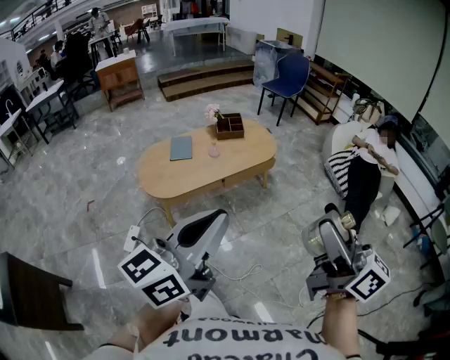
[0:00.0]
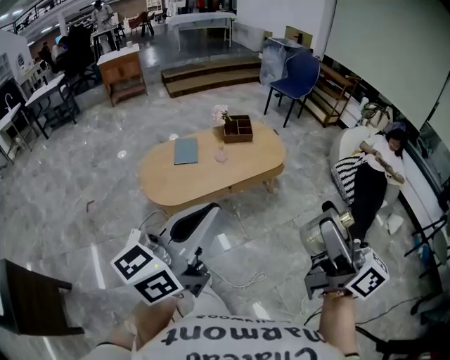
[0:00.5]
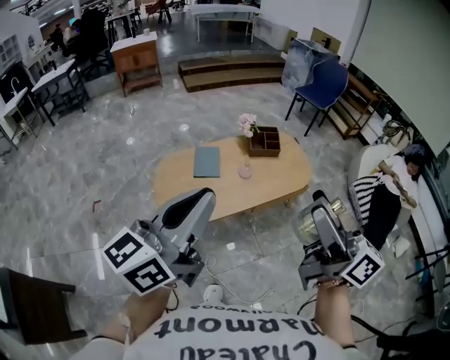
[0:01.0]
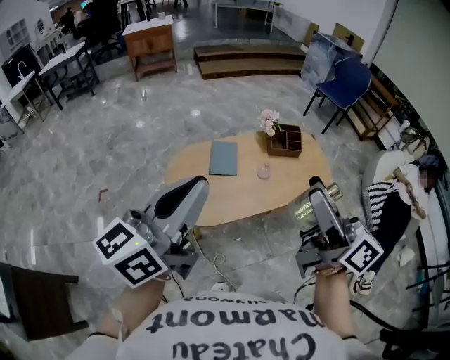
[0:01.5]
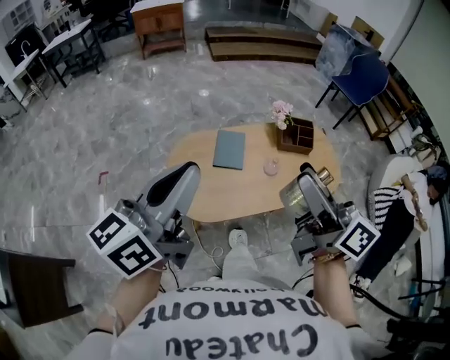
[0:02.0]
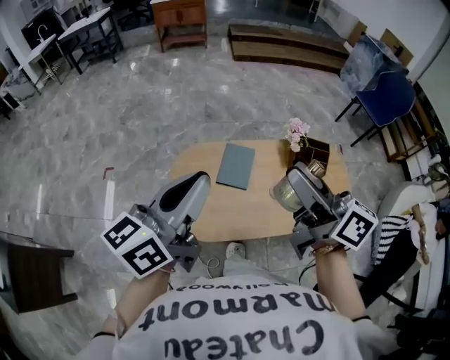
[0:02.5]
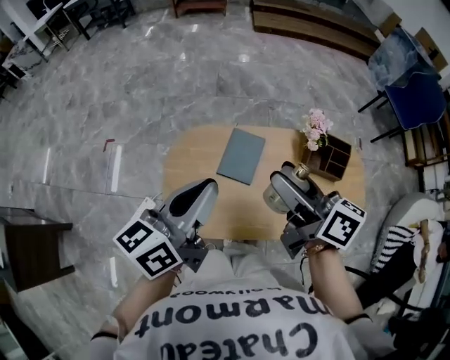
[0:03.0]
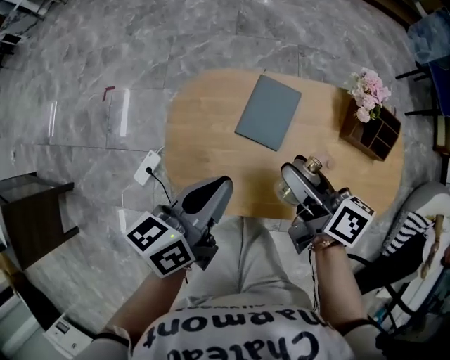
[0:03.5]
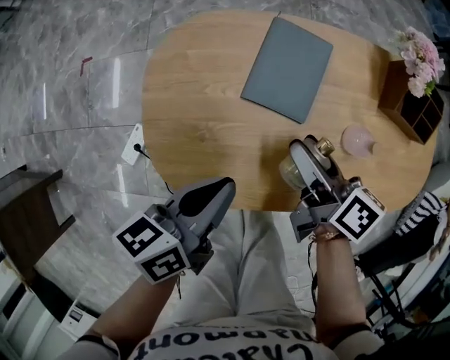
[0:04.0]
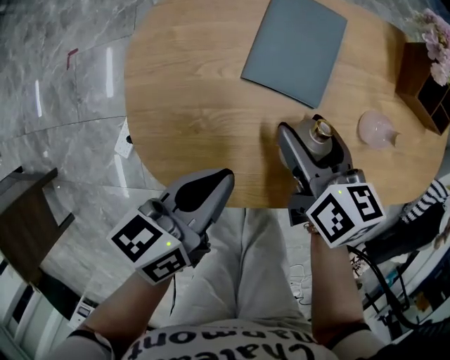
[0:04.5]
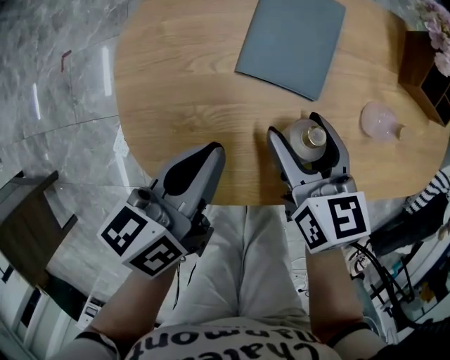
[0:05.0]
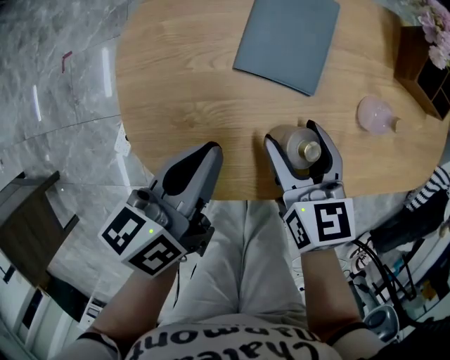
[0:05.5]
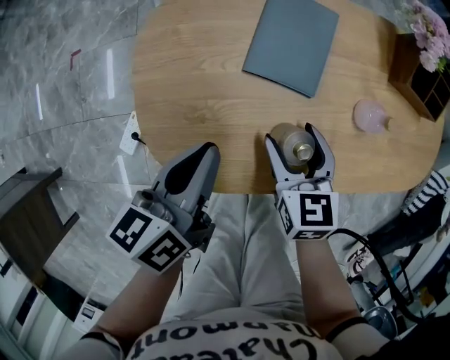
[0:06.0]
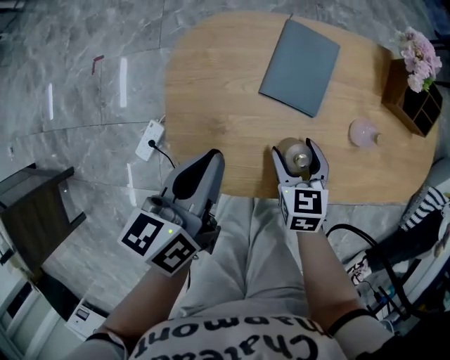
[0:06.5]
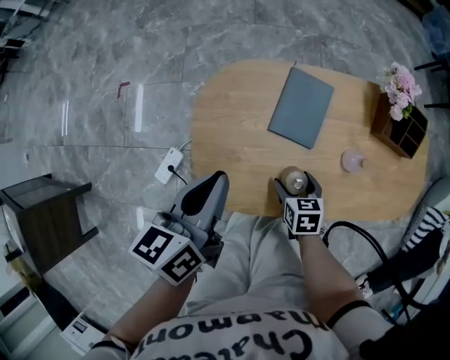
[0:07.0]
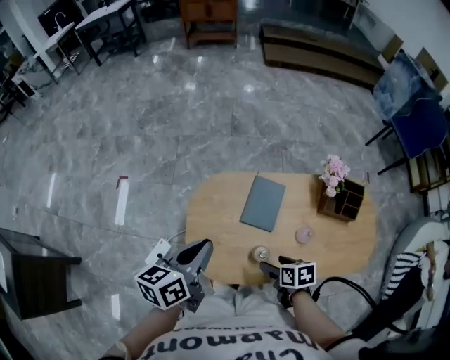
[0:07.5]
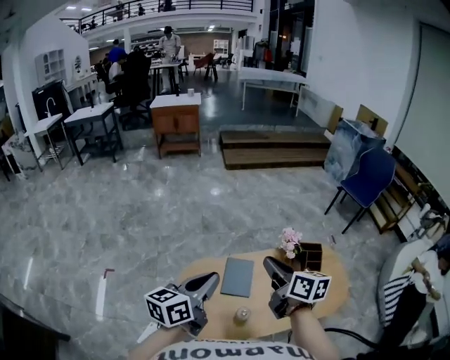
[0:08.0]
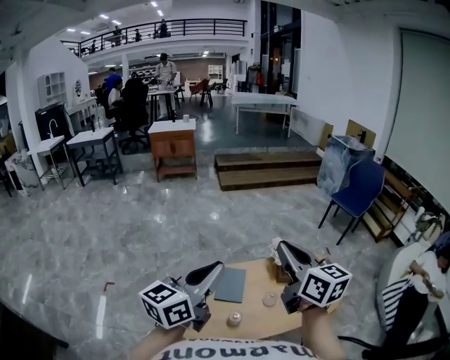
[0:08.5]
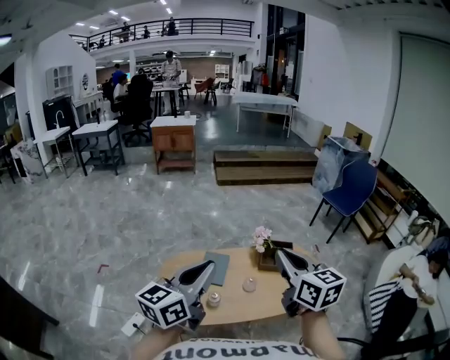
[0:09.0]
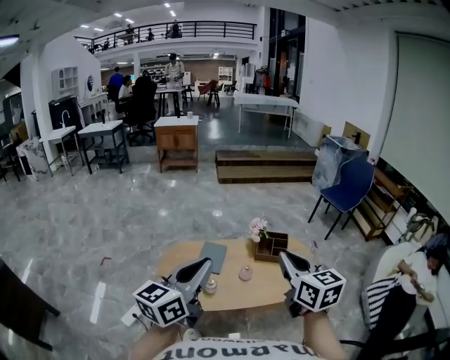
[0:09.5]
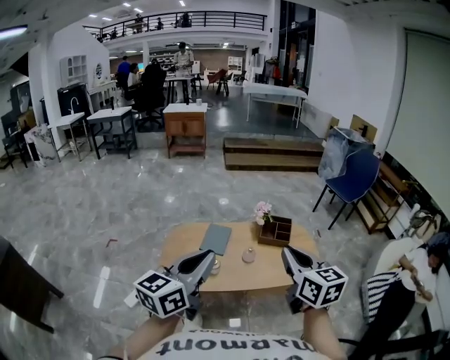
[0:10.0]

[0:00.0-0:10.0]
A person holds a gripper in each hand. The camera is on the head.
0:00.0 to 0:02.0: The two grippers travel together, forward and to the left, about 50 cm. The left gripper rotates roughly 20 degrees, while the right gripper turns by about 30 degrees.
0:02.0 to 0:04.0: The left gripper heads downward, covering approximately 50 cm, and points its fingers some 30 degrees further downward; the right gripper is displaced downward and forward by approximately 50 cm, and tips its fingers downward by roughly 40 degrees.
0:04.0 to 0:06.0: The right gripper shifts some 10 cm downward and backward, and twists roughly 40 degrees counterclockwise, seen from behind.
0:06.0 to 0:08.0: The two grippers go some 40 cm upward. The left gripper changes its angle by some 30 degrees. The right gripper turns by some 40 degrees, and closes its fingers.
0:08.0 to 0:10.0: The two grippers go about 40 cm backward and to the right. The left gripper swivels approximately 20 degrees; the right gripper changes its angle by some 30 degrees.

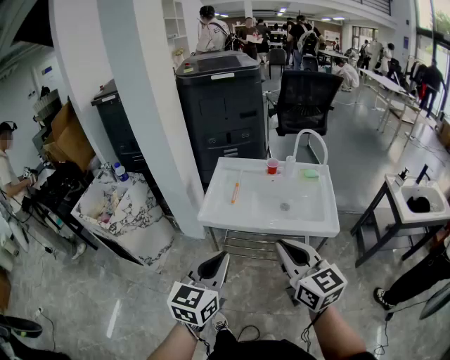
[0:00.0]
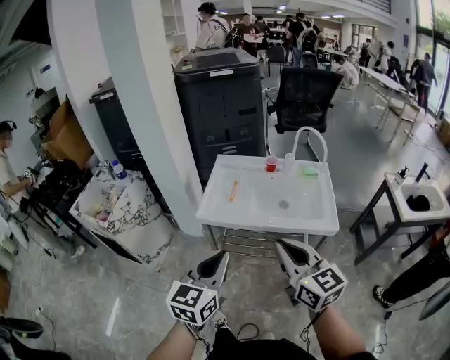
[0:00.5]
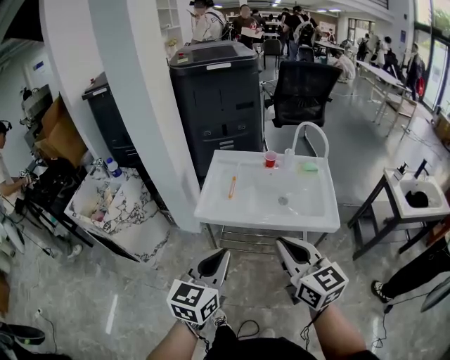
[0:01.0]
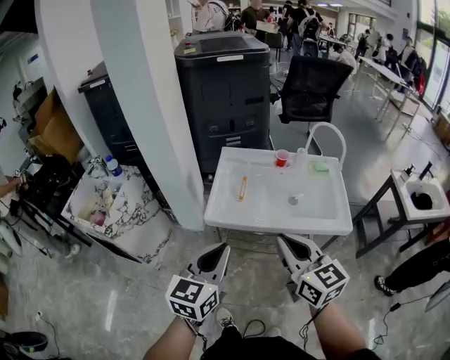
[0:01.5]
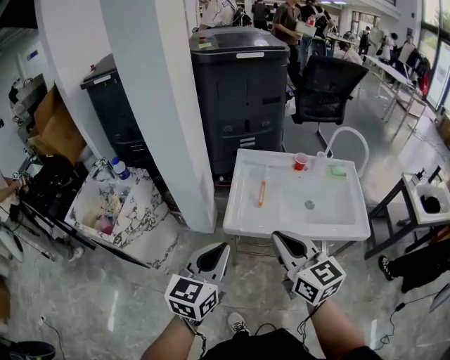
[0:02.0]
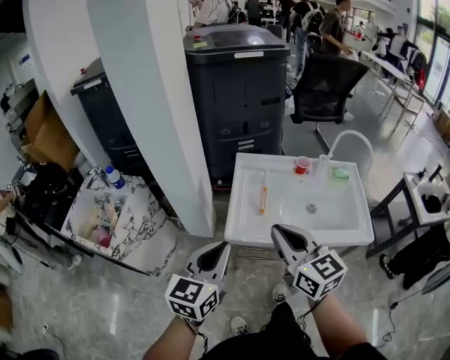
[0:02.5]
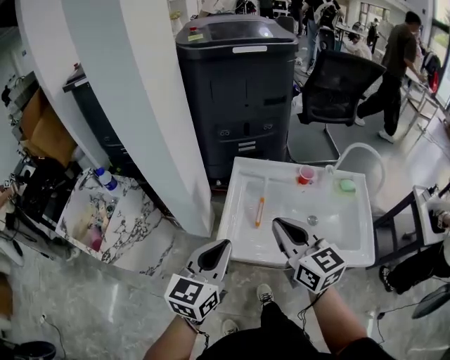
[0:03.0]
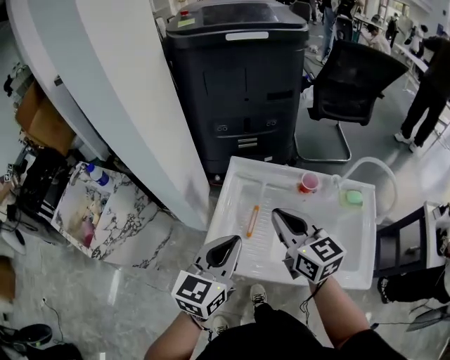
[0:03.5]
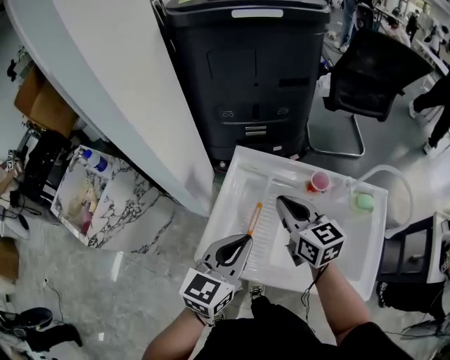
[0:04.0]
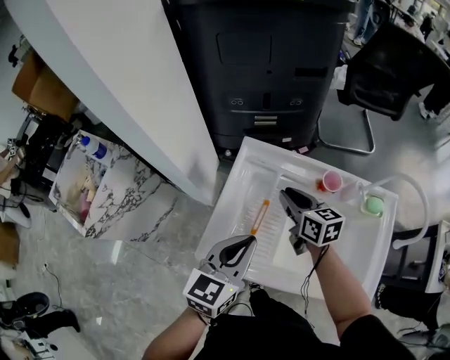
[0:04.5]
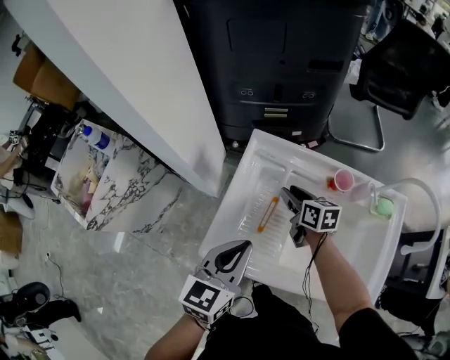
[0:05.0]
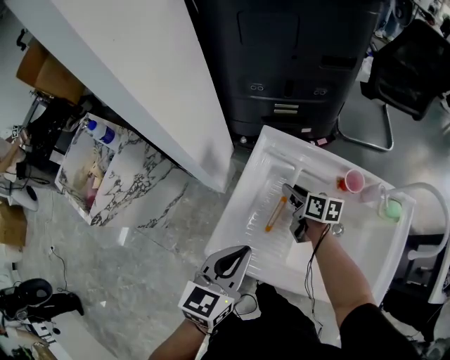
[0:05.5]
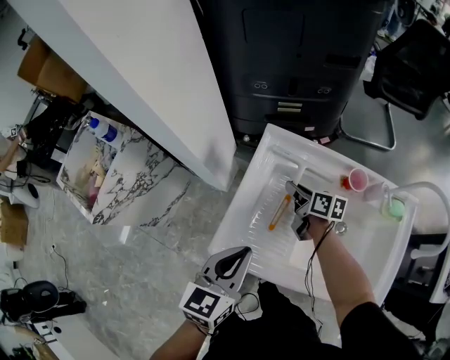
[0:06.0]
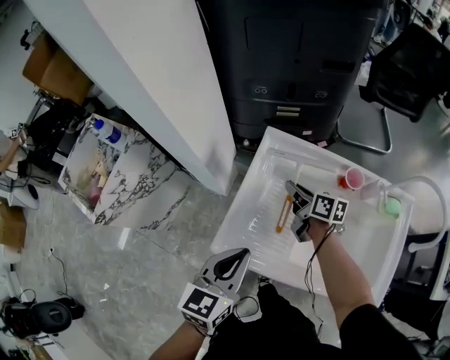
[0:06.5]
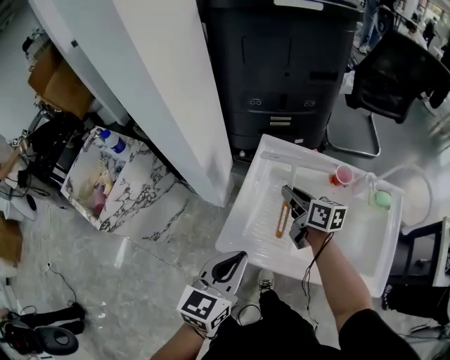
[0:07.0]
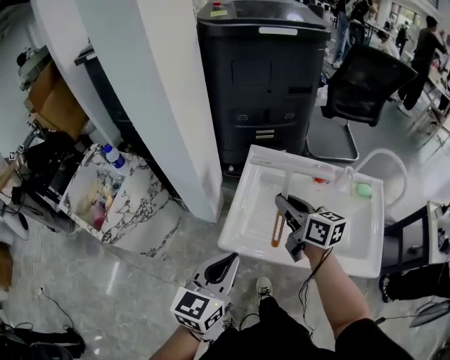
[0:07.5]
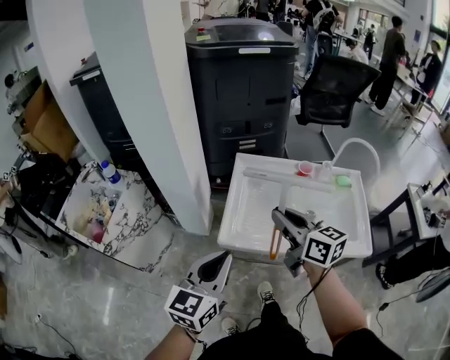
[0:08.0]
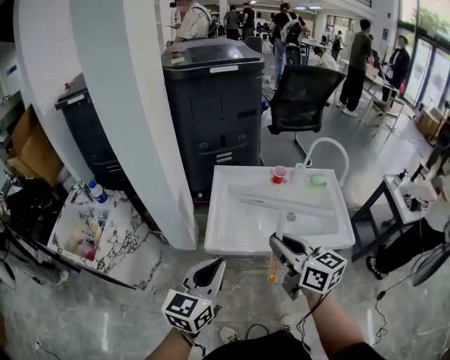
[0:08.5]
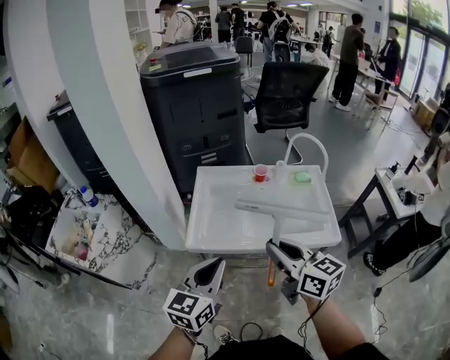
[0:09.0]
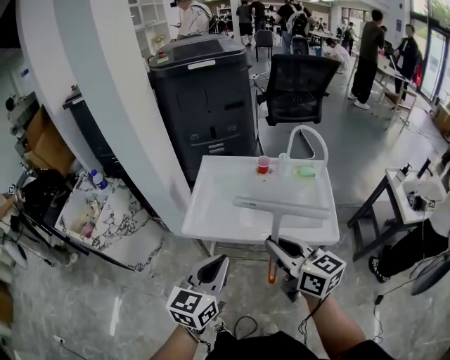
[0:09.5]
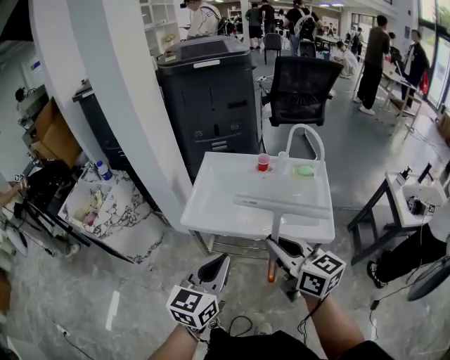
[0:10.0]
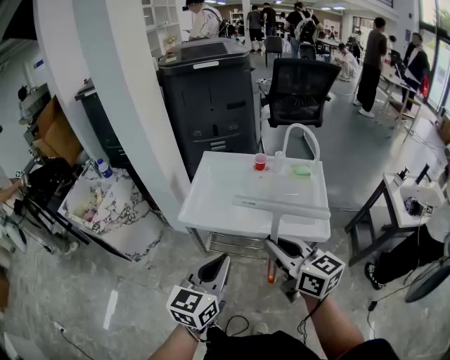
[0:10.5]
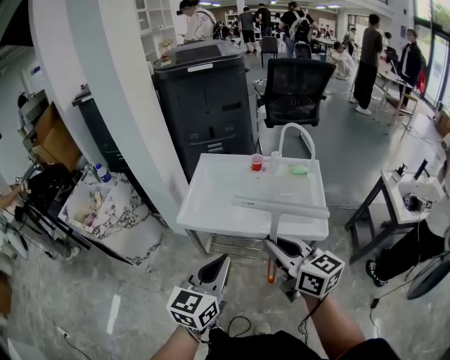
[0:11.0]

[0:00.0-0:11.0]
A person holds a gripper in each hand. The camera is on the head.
0:00.0 to 0:02.0: Both grippers move to the left and forward, approximately 20 cm.
0:02.0 to 0:03.5: The right gripper goes some 25 cm forward, while the left gripper is displaced forward and to the right by roughly 25 cm.
0:03.5 to 0:05.5: The right gripper is displaced downward and forward by approximately 30 cm, swivels roughly 40 degrees, and opens up. The left gripper moves downward, approximately 10 cm.
0:05.5 to 0:07.5: The left gripper goes some 15 cm backward, upward and to the left; the right gripper is displaced upward and backward by roughly 25 cm, rotates some 30 degrees, and closes up.
0:07.5 to 0:09.0: The right gripper travels backward by about 30 cm, while the left gripper travels backward and to the right by approximately 15 cm.
0:09.0 to 0:11.0: The left gripper heads to the right and backward, covering some 15 cm, while the right gripper moves backward and to the right, about 10 cm.

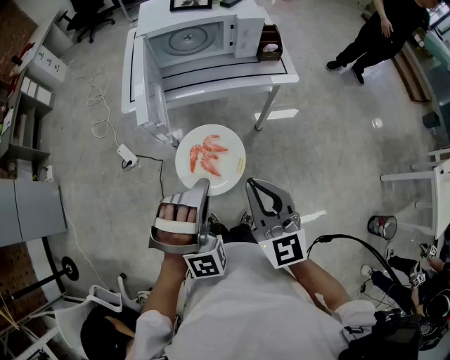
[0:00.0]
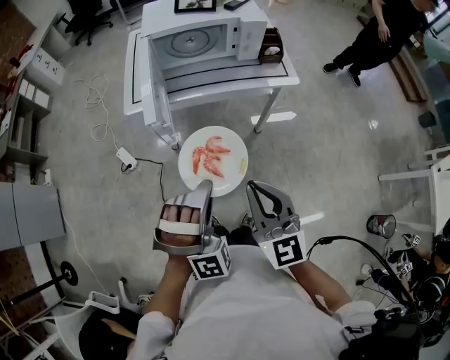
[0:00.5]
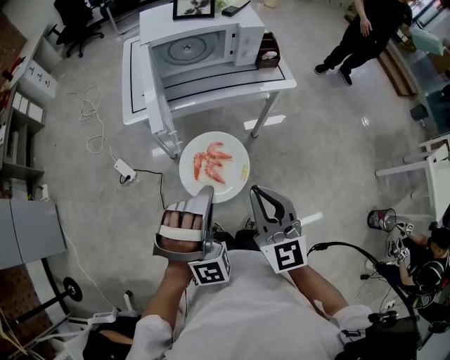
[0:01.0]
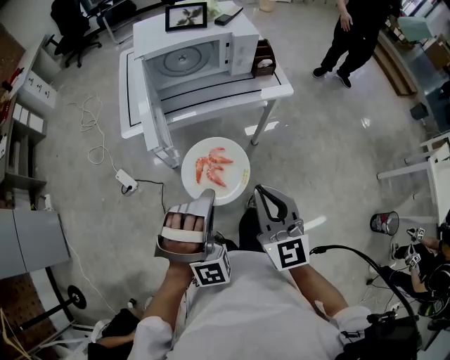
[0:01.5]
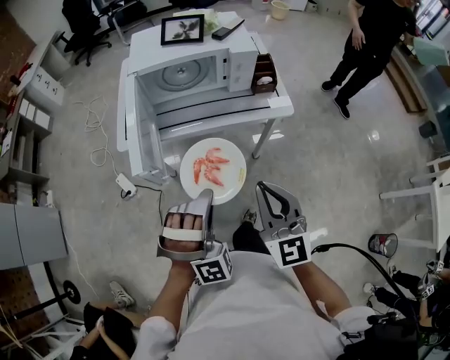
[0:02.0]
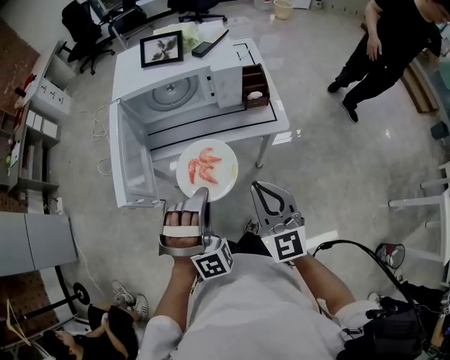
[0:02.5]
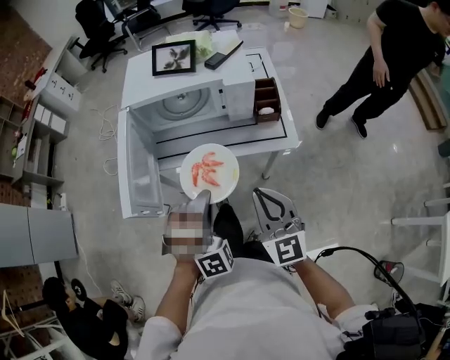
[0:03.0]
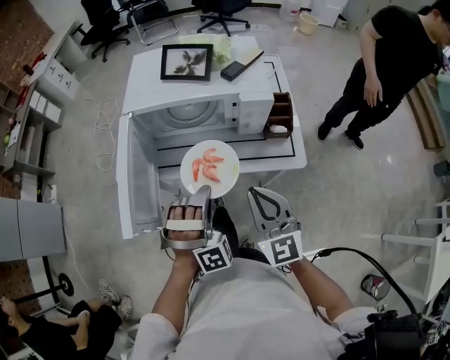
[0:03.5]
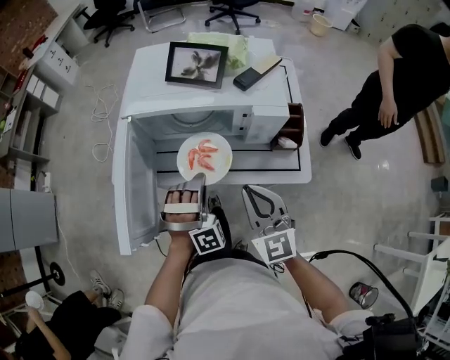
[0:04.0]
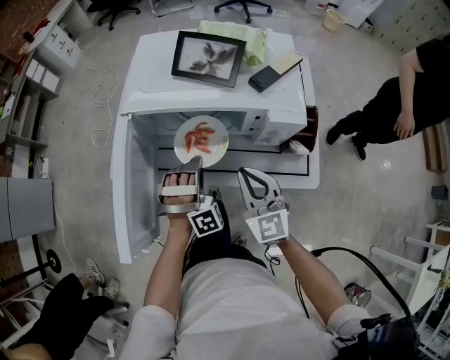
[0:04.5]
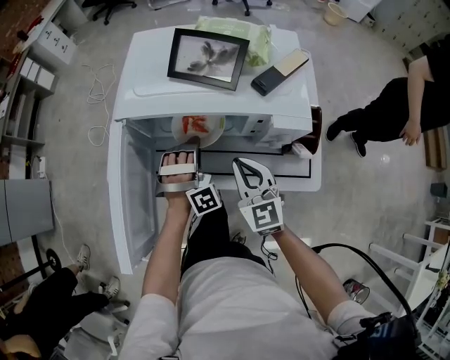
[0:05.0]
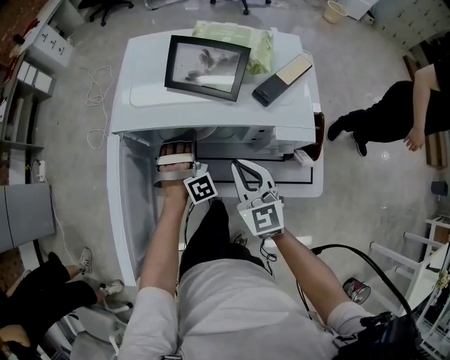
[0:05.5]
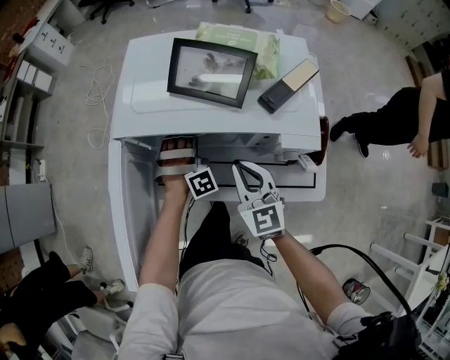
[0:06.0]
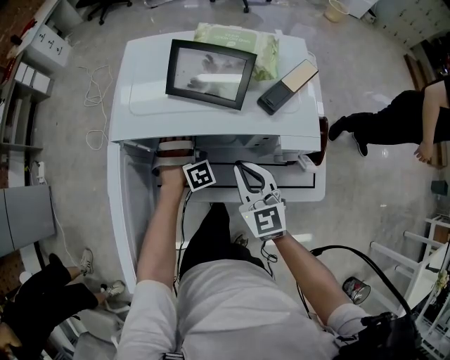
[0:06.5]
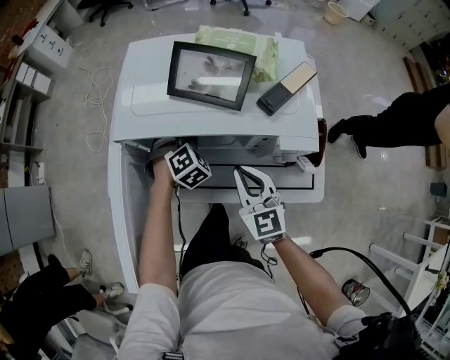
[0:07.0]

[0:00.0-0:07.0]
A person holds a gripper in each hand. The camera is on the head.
0:00.0 to 0:02.0: The right gripper changes place by about 10 cm.
0:02.0 to 0:03.5: The right gripper shifts by about 20 cm.
0:03.5 to 0:05.0: The right gripper shifts by roughly 20 cm.
